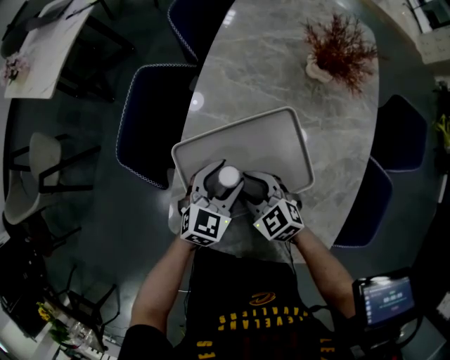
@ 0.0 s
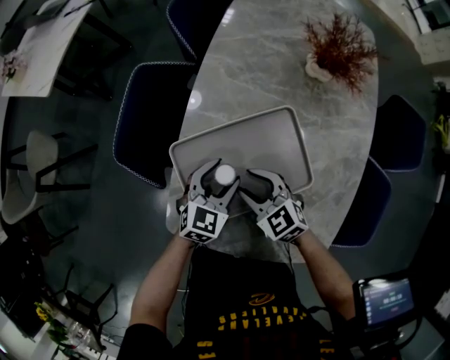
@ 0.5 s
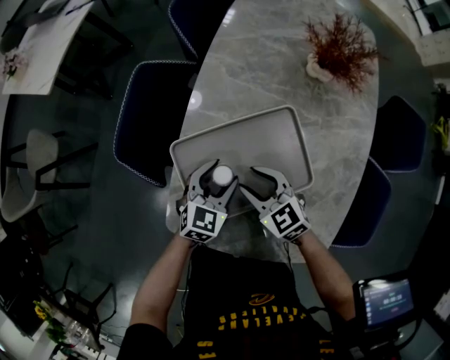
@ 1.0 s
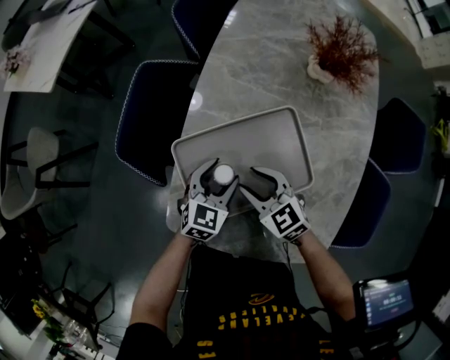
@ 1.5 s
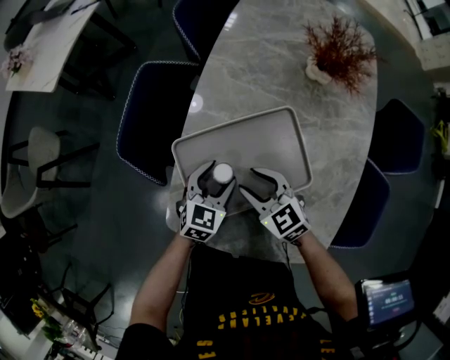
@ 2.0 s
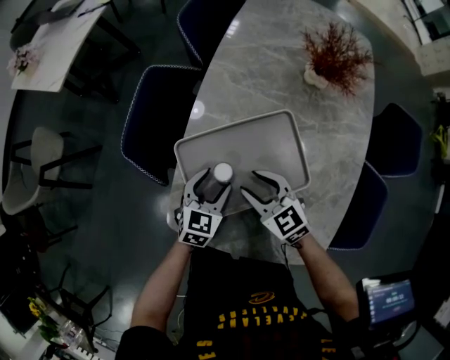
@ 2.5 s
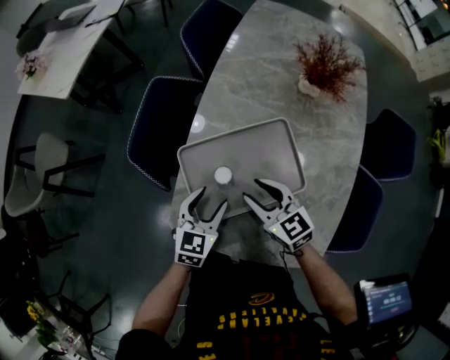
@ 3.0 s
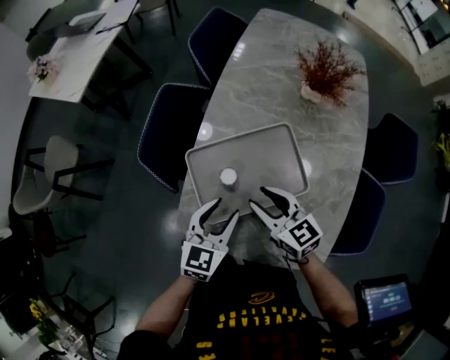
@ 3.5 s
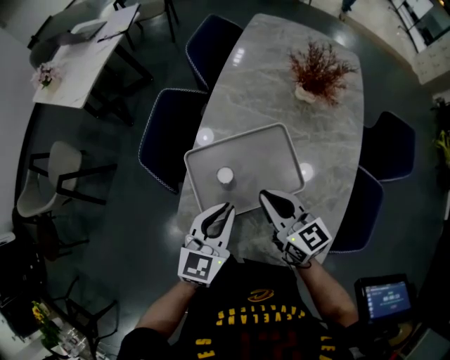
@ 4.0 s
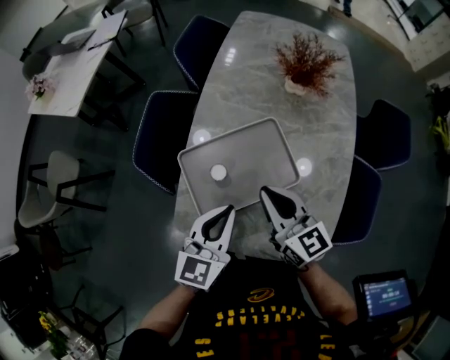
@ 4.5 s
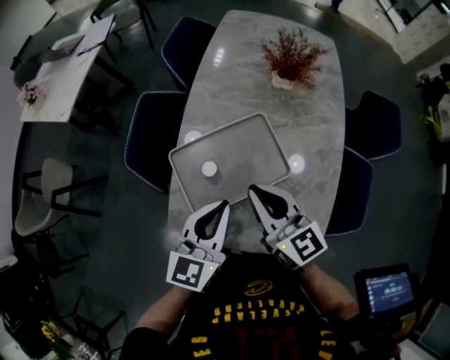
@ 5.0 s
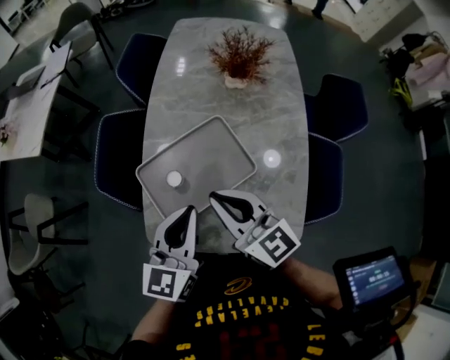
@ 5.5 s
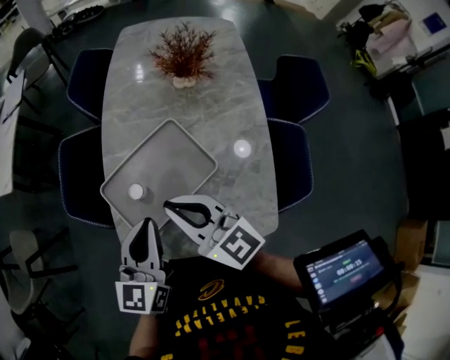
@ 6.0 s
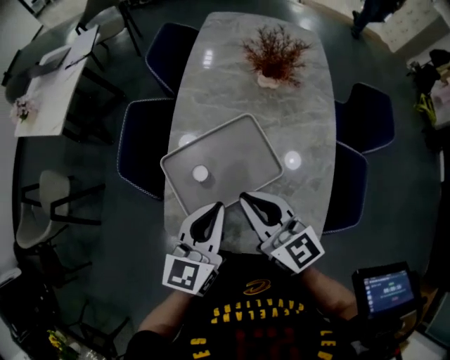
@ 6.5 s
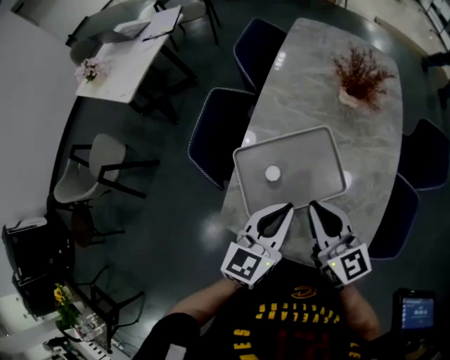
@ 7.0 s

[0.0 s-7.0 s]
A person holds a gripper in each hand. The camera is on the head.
0.0 to 2.0 s: The grippers stay close to where they were, moving slightly.
2.0 to 3.5 s: The right gripper heads upward, covering approximately 10 cm, and turns by some 20 degrees. The left gripper heads upward and backward, covering roughly 15 cm.
3.5 to 5.0 s: Both grippers travel together upward, some 10 cm. The left gripper closes its fingers. Meanwhile the right gripper changes its angle by approximately 20 degrees, and closes its fingers.
5.0 to 7.0 s: The grippers stay close to where they were, moving slightly.

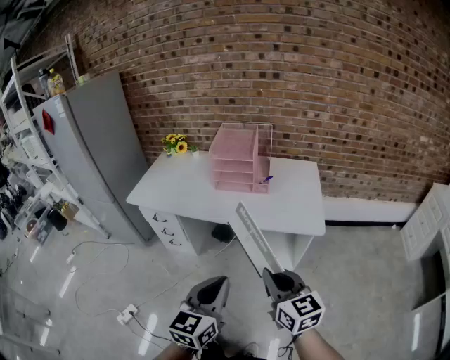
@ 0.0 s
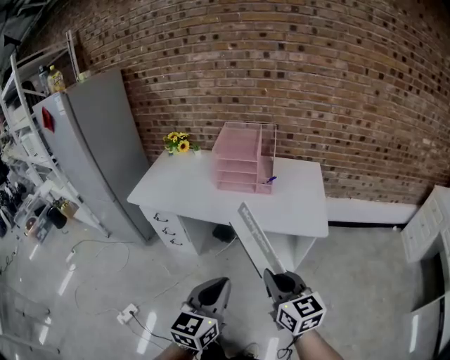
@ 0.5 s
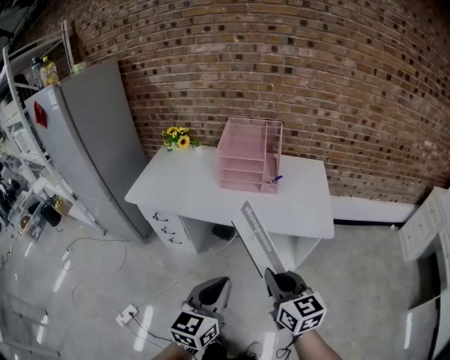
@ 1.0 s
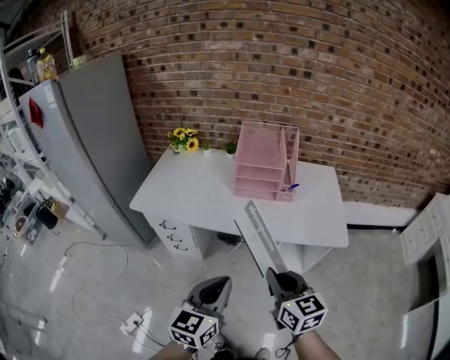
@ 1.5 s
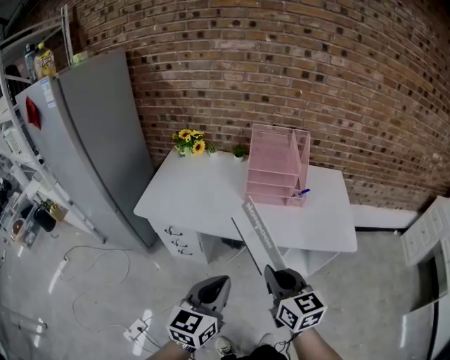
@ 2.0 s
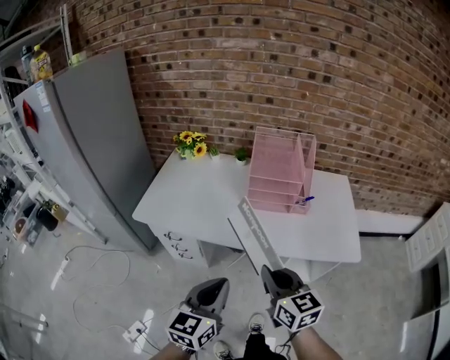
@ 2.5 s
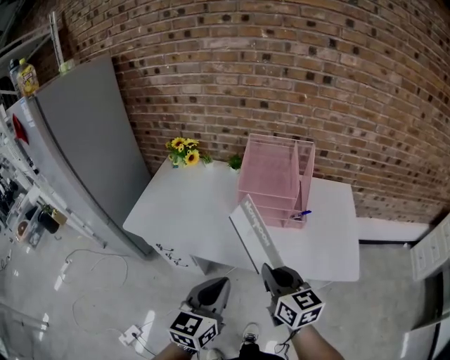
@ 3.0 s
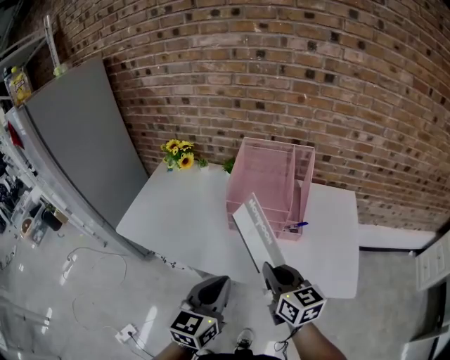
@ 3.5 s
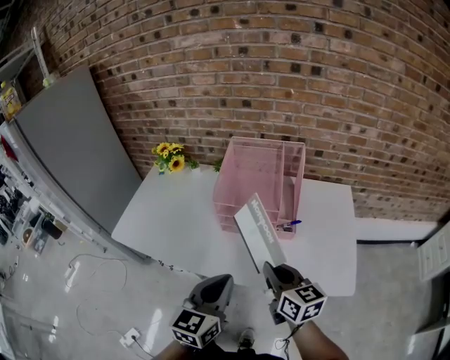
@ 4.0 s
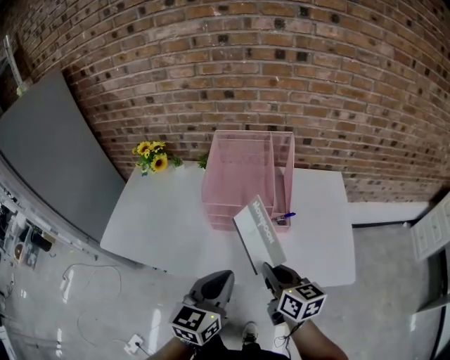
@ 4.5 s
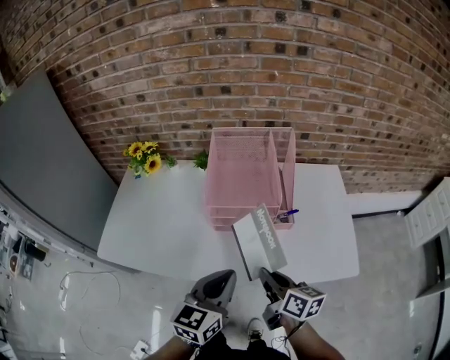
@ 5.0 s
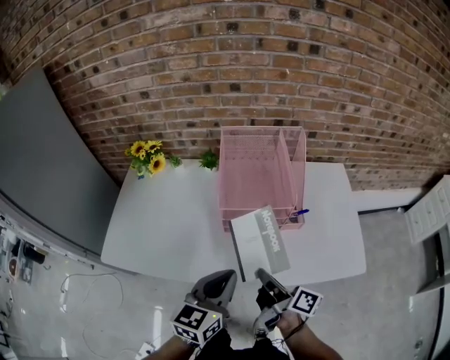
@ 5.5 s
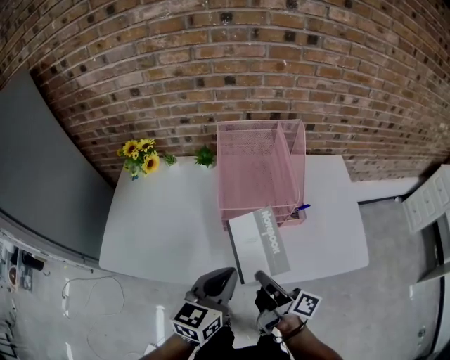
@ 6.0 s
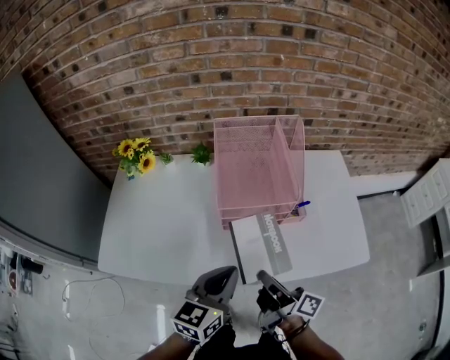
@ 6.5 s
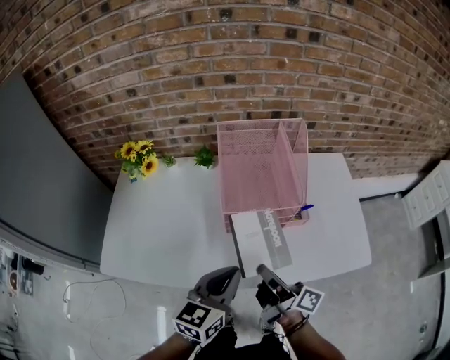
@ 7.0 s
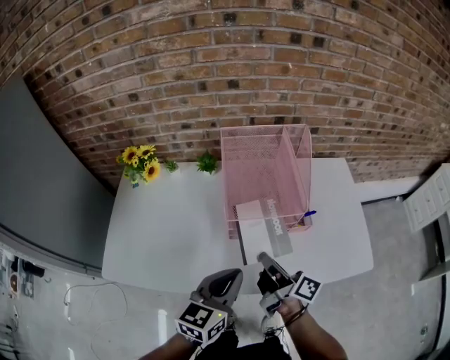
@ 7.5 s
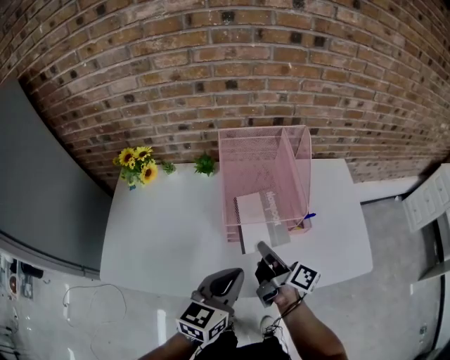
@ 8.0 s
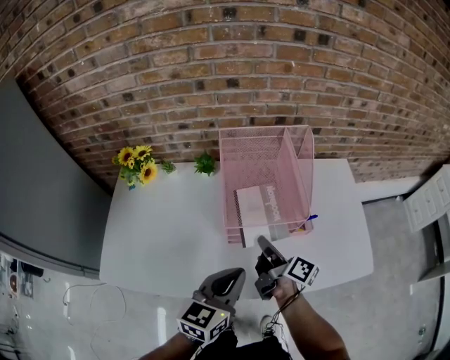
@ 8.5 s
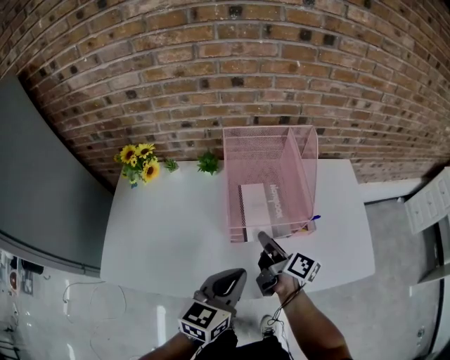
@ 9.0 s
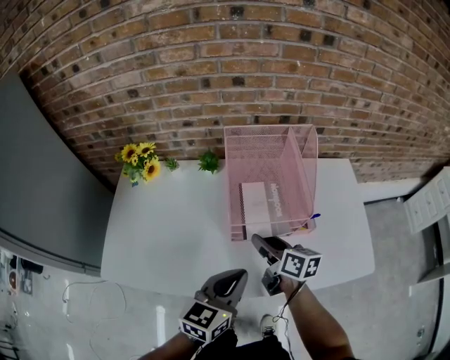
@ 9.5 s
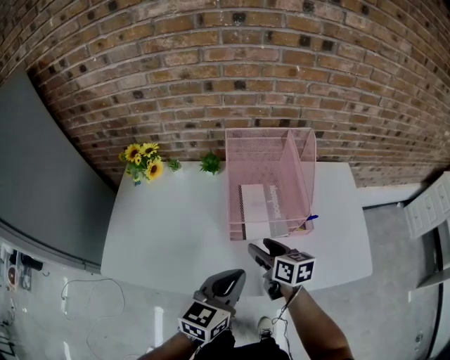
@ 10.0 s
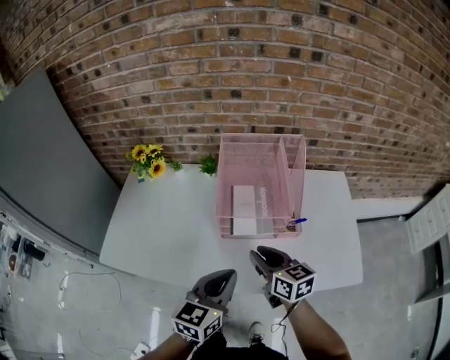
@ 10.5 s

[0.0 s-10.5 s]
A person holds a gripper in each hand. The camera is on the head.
0.0 to 2.0 s: Both grippers move to the left and forward, about 25 cm.
2.0 to 4.0 s: The grippers both shift forward and to the right by some 25 cm.
4.0 to 6.5 s: The left gripper shifts about 15 cm forward, to the left and downward, and turns by roughly 20 degrees. The right gripper moves to the left and downward, some 10 cm, and twists approximately 50 degrees clockwise, seen from behind.
6.5 to 8.5 s: The right gripper is displaced forward by about 15 cm.
8.5 to 10.5 s: The right gripper heads backward and upward, covering some 10 cm, twists approximately 50 degrees counterclockwise, seen from behind, and opens up, while the left gripper ends up about 5 cm from where it was.

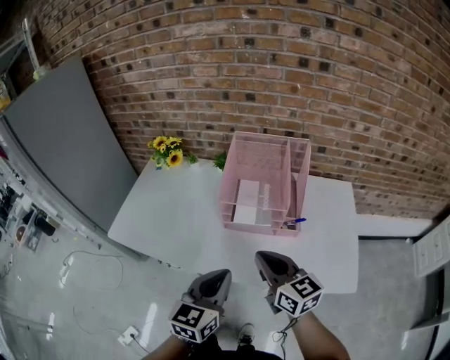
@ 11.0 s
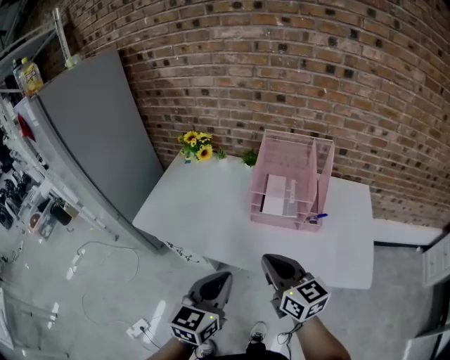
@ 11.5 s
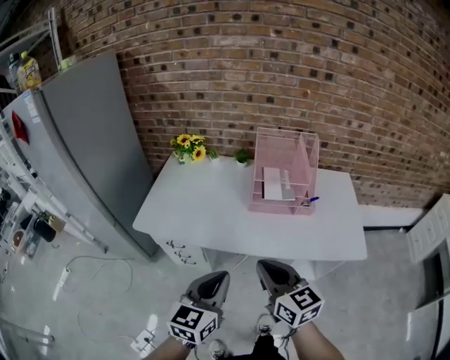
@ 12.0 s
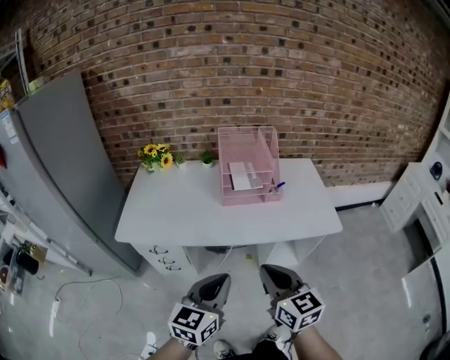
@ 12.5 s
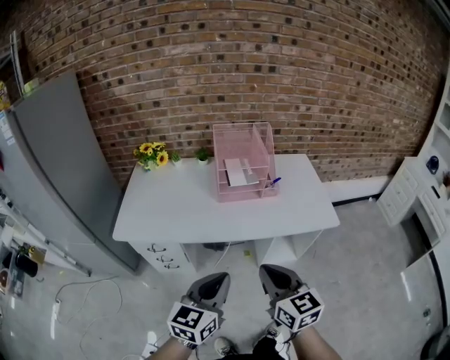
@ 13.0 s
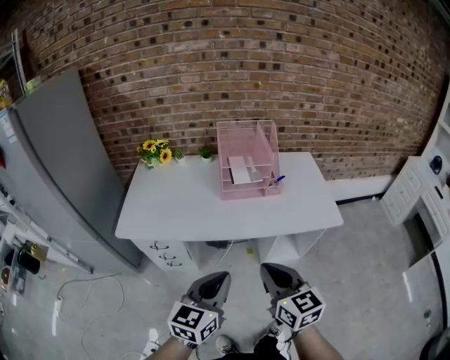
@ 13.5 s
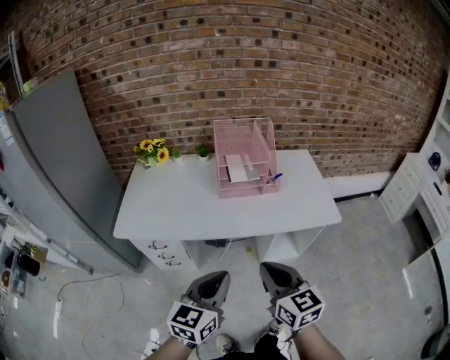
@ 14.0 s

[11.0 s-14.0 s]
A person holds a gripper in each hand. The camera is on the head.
11.0 to 12.5 s: The grippers both shift backward and to the left by about 25 cm. The right gripper turns by approximately 20 degrees.
12.5 to 14.0 s: The grippers make only small movements.

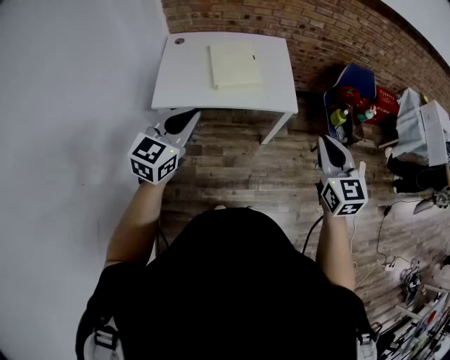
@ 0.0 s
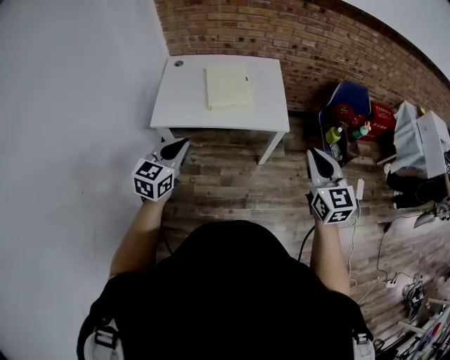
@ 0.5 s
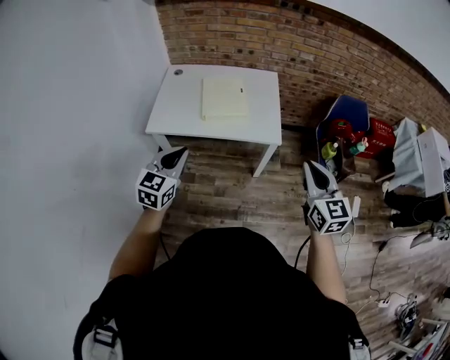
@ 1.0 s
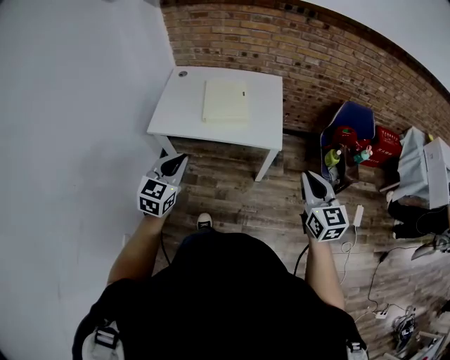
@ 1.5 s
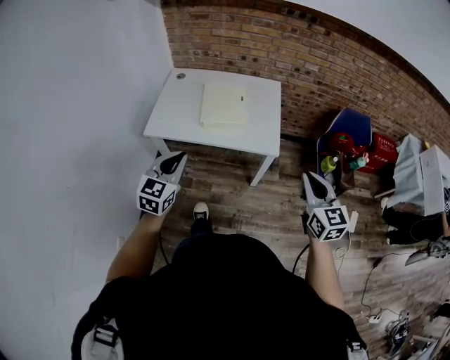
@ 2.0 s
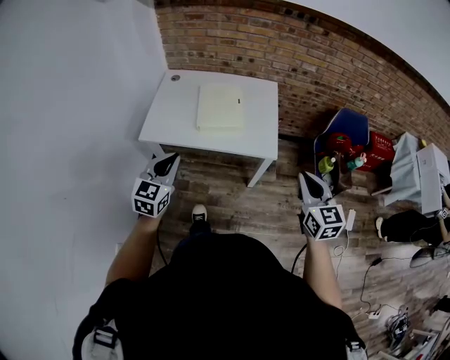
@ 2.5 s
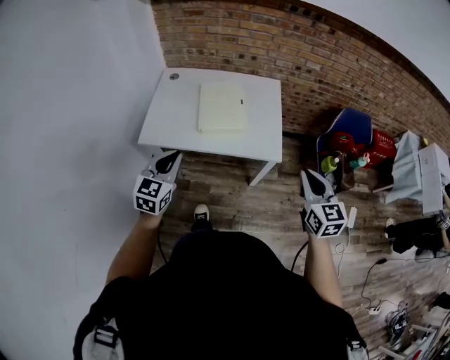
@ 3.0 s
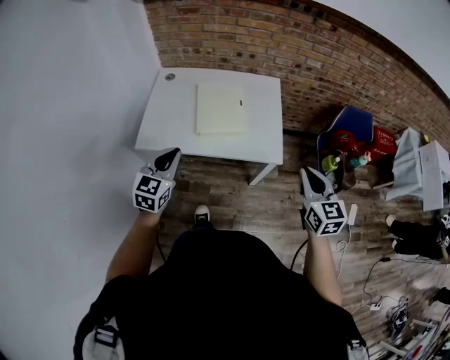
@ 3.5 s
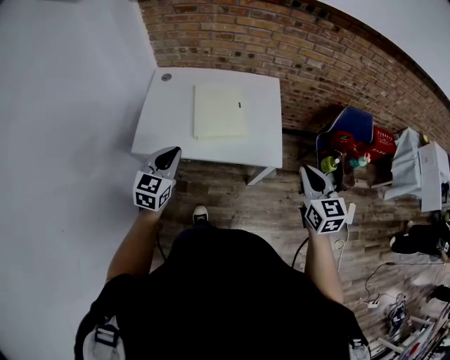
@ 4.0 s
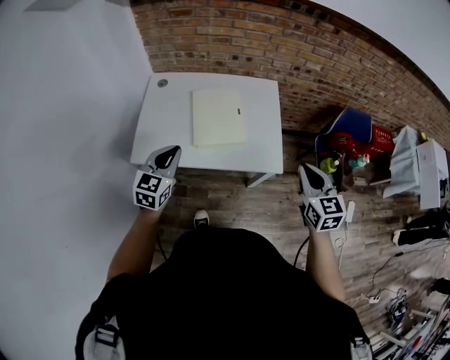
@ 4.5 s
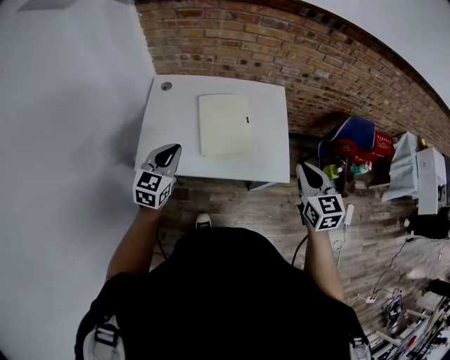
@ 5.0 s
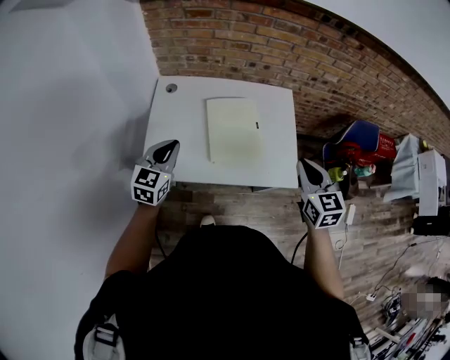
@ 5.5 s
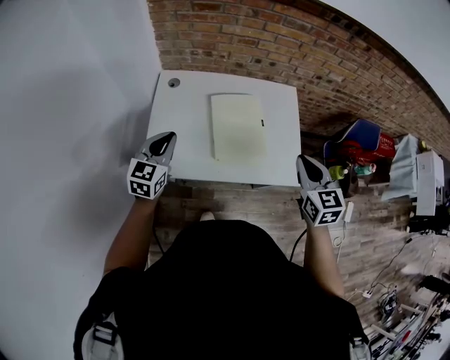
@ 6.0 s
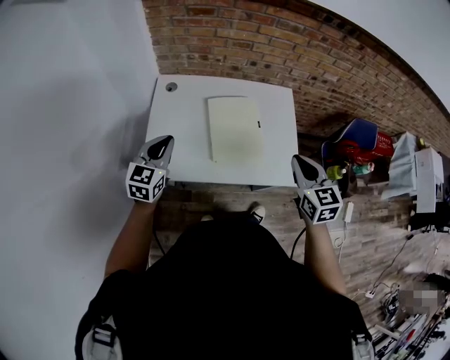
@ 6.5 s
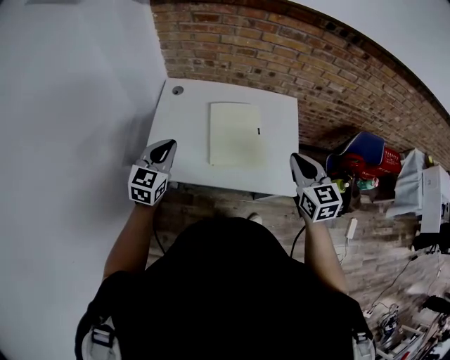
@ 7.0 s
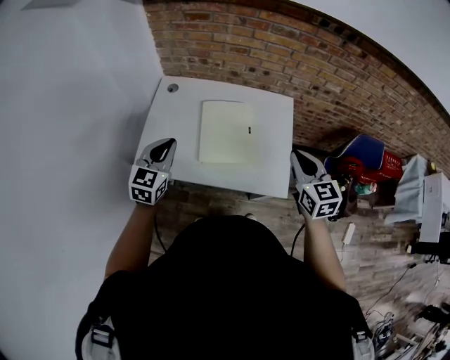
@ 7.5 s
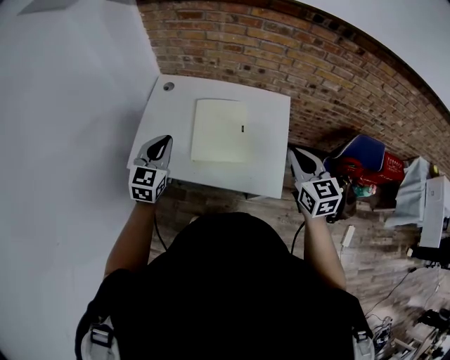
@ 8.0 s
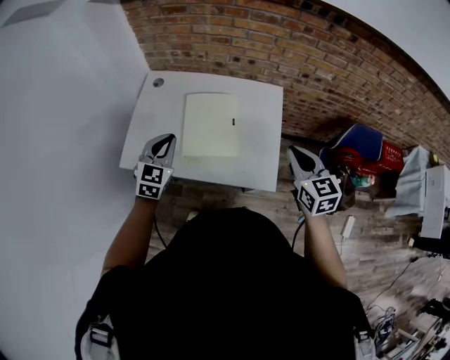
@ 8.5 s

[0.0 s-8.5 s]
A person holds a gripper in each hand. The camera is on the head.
0.0 to 2.0 s: The left gripper shifts about 10 cm to the right and downward; the right gripper heads to the right, covering some 15 cm.
2.0 to 4.0 s: Both grippers move forward, approximately 15 cm.
4.0 to 6.5 s: The right gripper heads to the left and forward, covering some 20 cm, while the left gripper goes roughly 20 cm forward and to the left.
6.5 to 8.5 s: Both grippers travel together to the right, some 15 cm.
